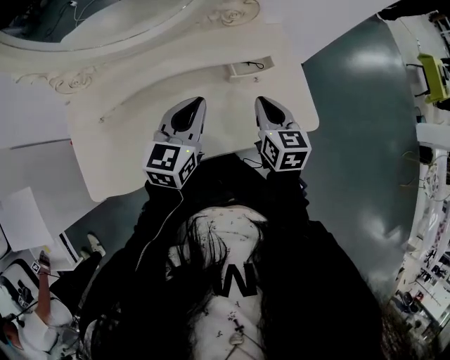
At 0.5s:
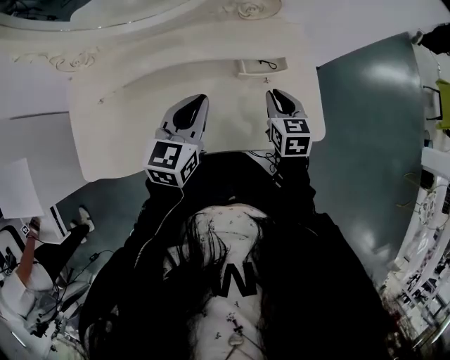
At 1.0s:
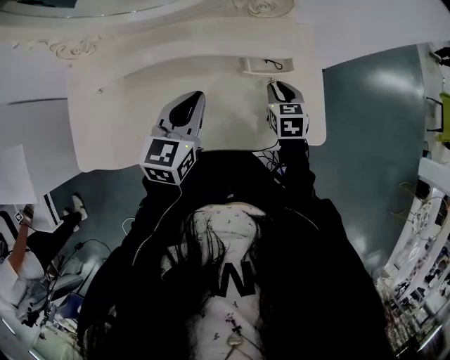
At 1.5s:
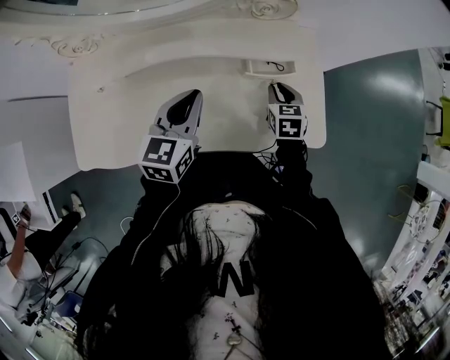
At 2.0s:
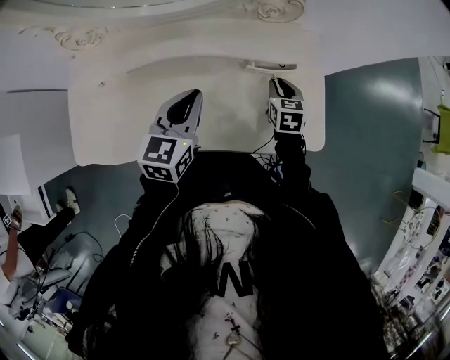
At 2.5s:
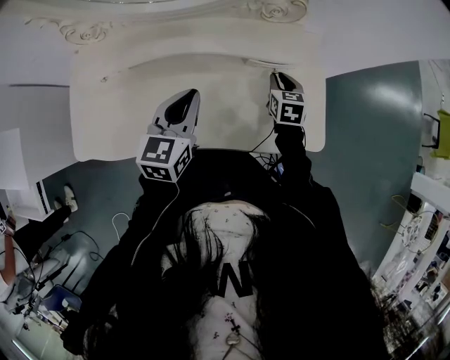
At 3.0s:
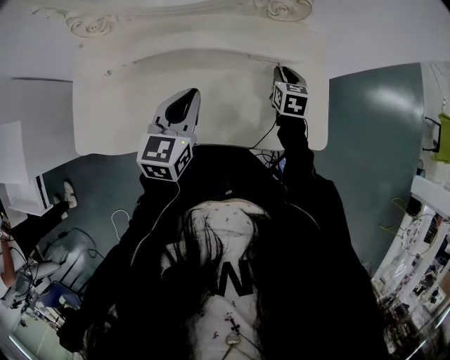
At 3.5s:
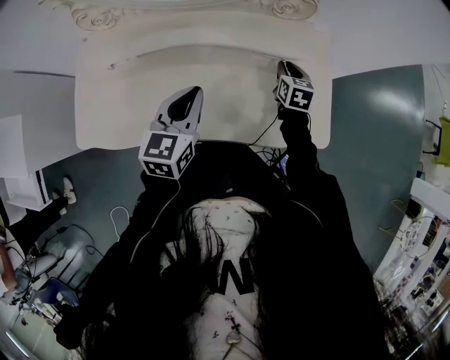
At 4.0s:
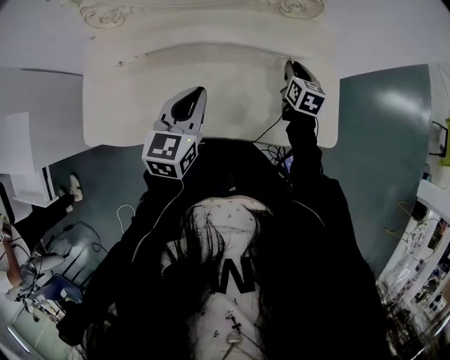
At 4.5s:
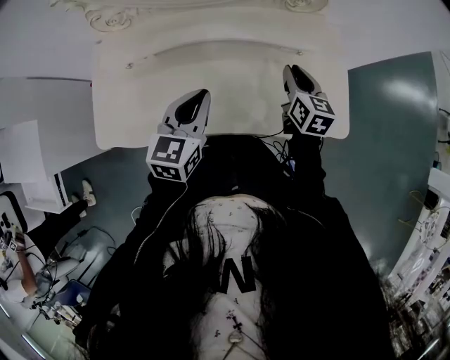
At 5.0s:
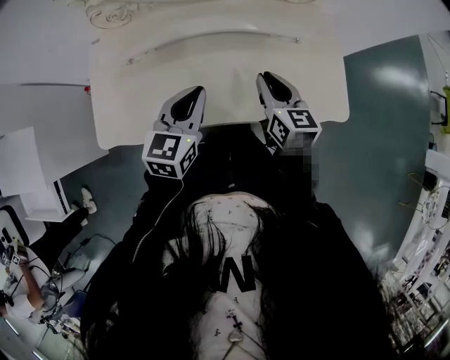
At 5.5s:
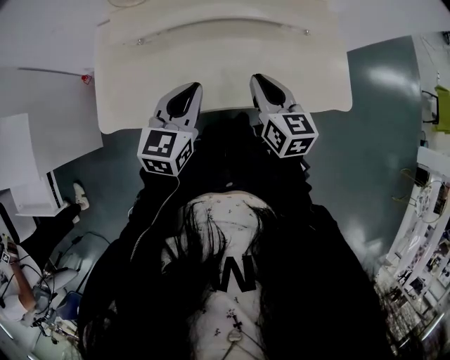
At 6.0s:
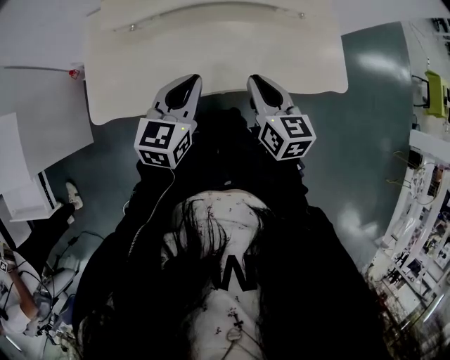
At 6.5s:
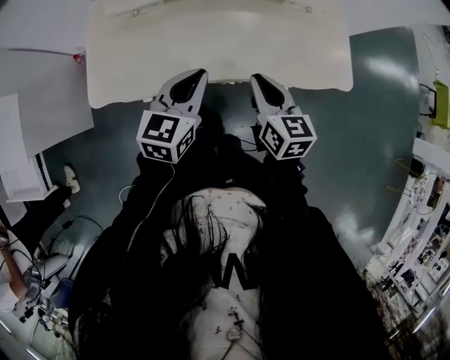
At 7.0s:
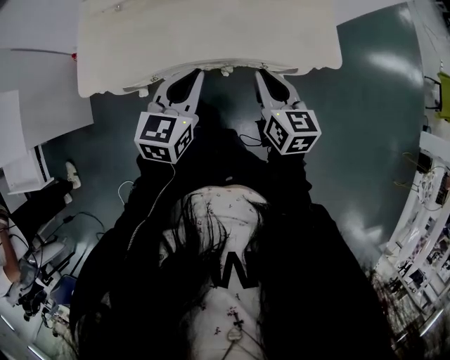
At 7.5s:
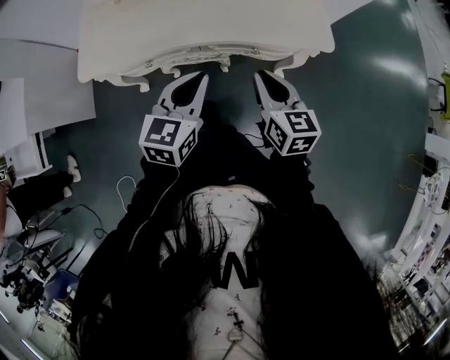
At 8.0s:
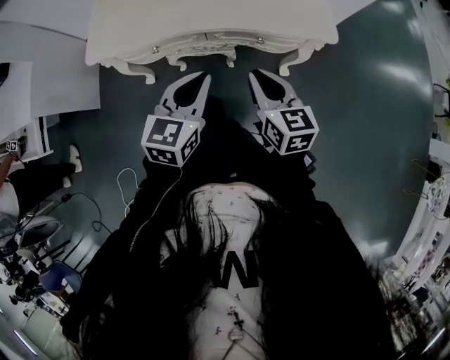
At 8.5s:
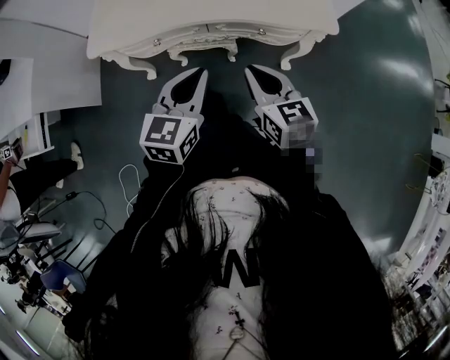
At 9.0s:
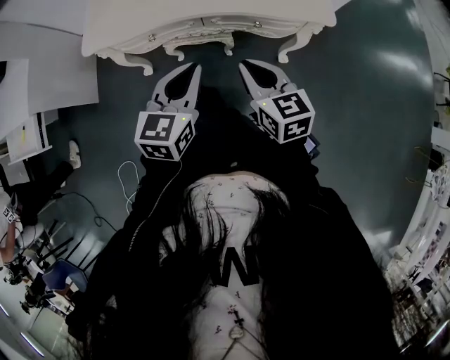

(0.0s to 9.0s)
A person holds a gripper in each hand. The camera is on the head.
0.0s - 2.0s: The left gripper moves about 5 cm. The right gripper travels downward and forward by roughly 15 cm, and swivels some 20 degrees.
2.0s - 4.5s: The right gripper shifts roughly 10 cm upward and to the left, and changes its angle by roughly 20 degrees. The left gripper travels backward and to the left by roughly 10 cm.
4.5s - 7.0s: The right gripper travels backward by approximately 25 cm. The left gripper shifts some 20 cm backward.
7.0s - 9.0s: Both grippers travel together backward, approximately 15 cm.

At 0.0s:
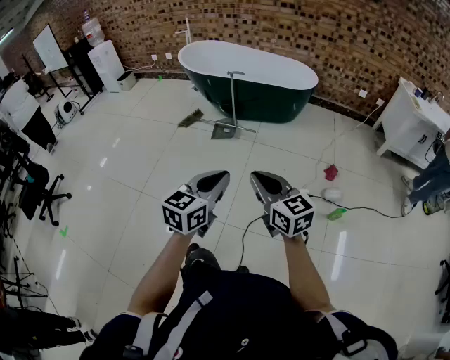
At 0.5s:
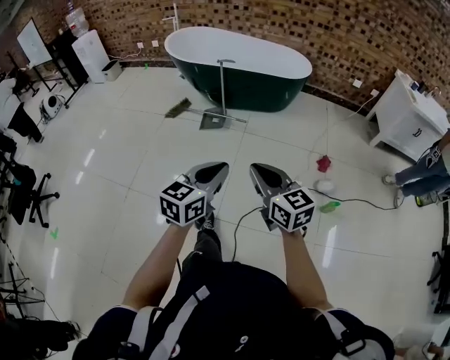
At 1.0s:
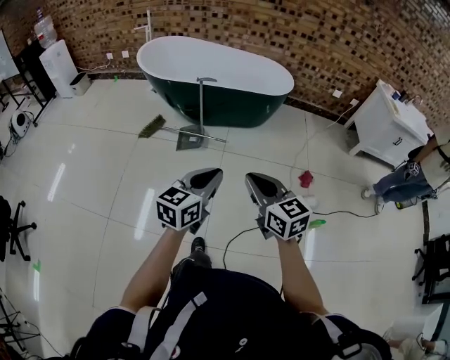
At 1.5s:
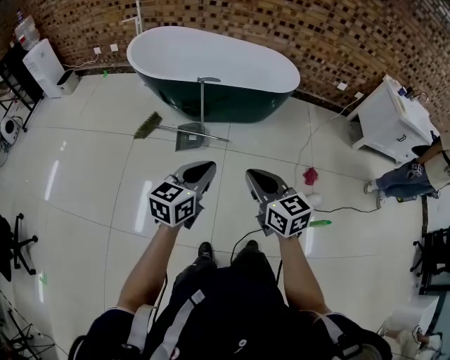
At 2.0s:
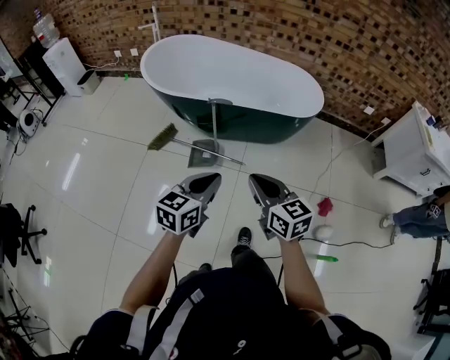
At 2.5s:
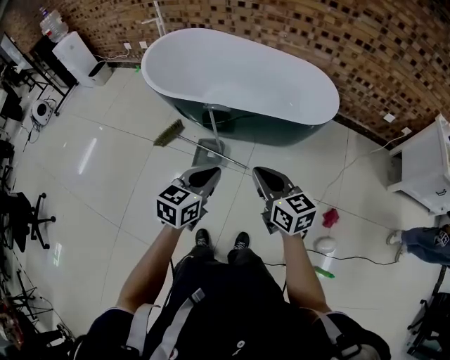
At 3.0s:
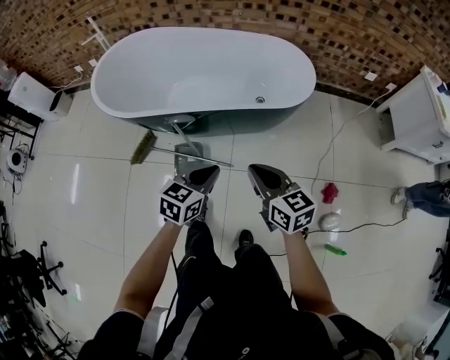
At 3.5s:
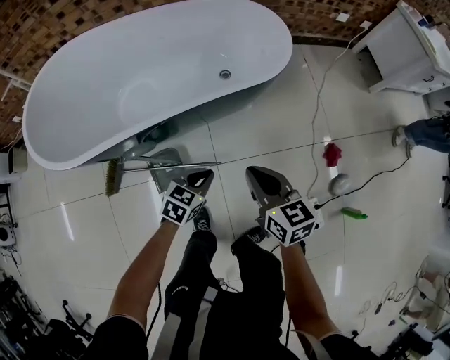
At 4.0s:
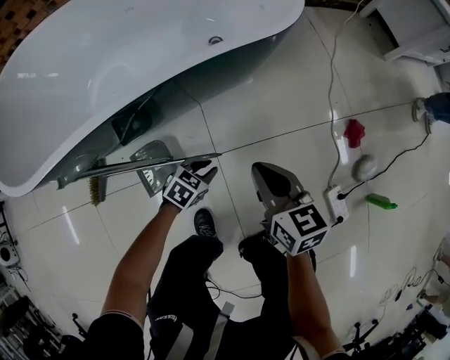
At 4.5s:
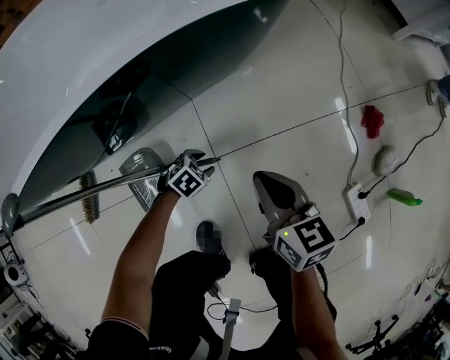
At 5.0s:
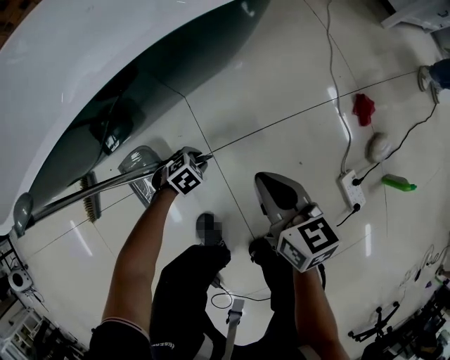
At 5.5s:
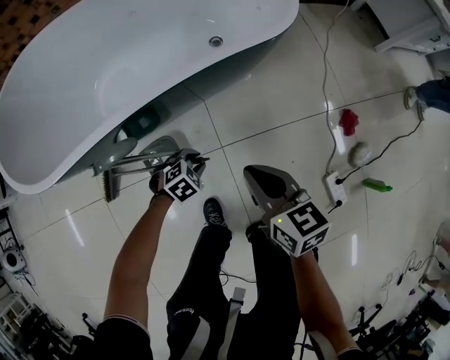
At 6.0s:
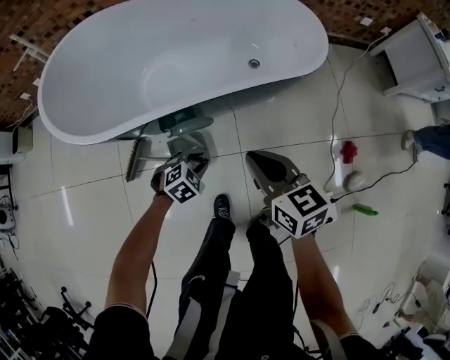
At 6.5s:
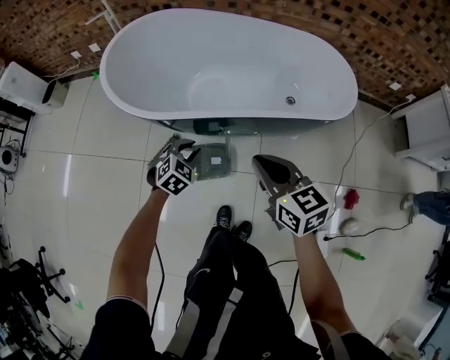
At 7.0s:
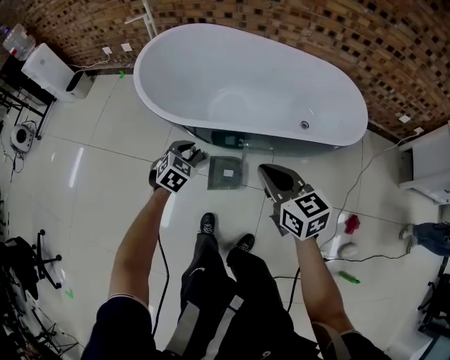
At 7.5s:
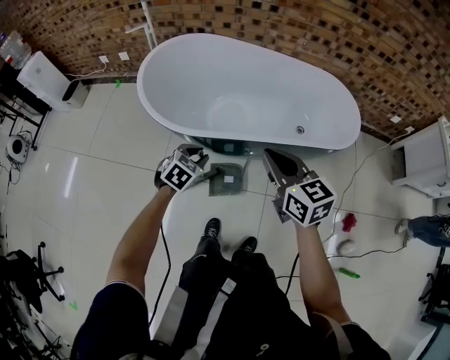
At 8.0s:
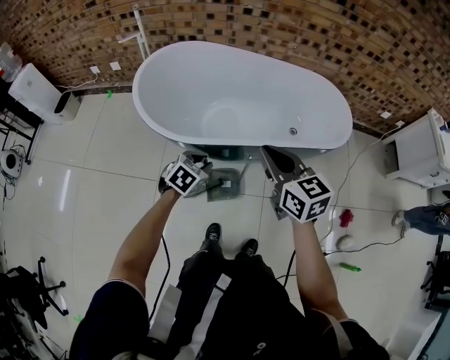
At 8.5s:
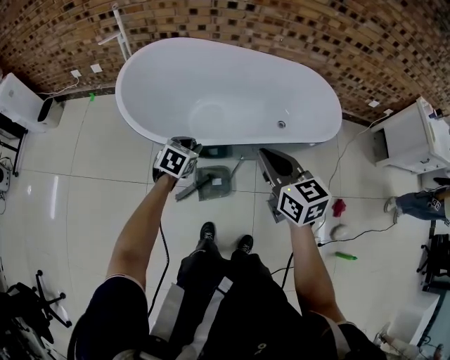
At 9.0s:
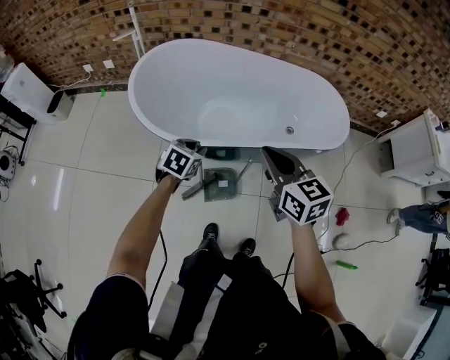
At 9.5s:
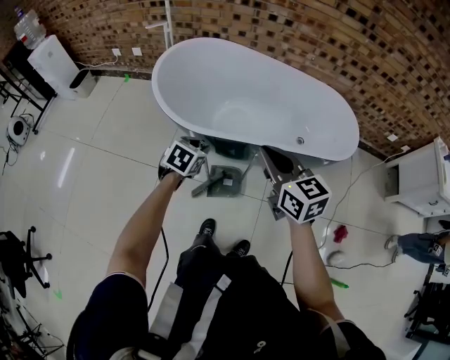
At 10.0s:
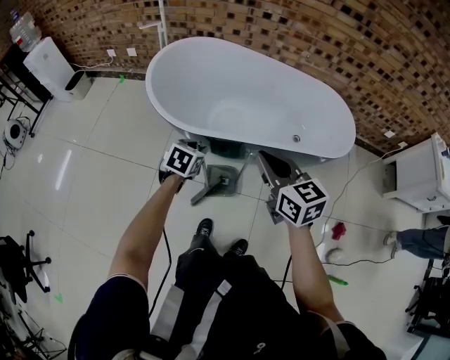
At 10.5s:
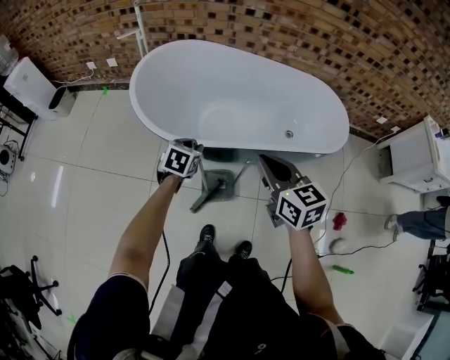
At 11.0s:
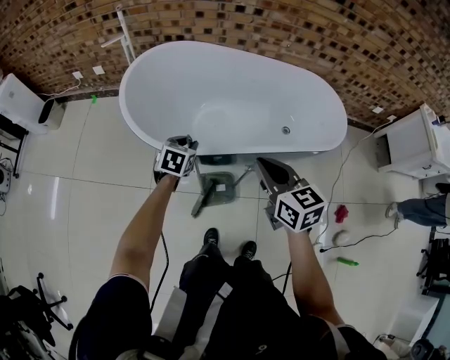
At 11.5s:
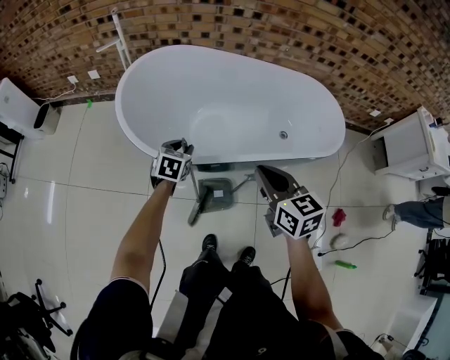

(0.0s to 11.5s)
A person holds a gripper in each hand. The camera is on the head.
0.0s - 2.0s: The pair of grippers is taken forward, about 50 cm.
2.0s - 4.0s: The right gripper heads downward, covering some 40 cm, and changes its angle by about 40 degrees. Meanwhile the left gripper is displaced downward by about 60 cm, tips its fingers downward by some 30 degrees, and opens up.
4.0s - 6.0s: Both grippers travel together upward, some 20 cm. The left gripper swivels some 20 degrees, and opens and closes again.
6.0s - 7.5s: The grippers both shift upward by about 20 cm. The left gripper changes its angle by about 30 degrees.
7.5s - 9.5s: The right gripper changes place by roughly 5 cm.
9.5s - 11.5s: The right gripper goes roughly 10 cm forward and downward. The left gripper shifts about 15 cm forward.

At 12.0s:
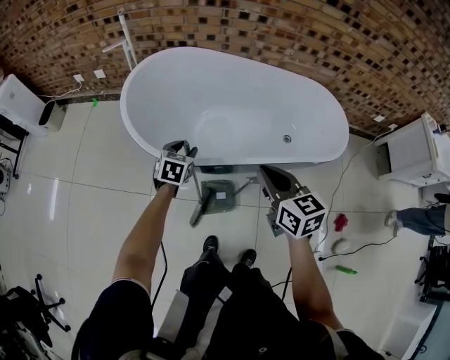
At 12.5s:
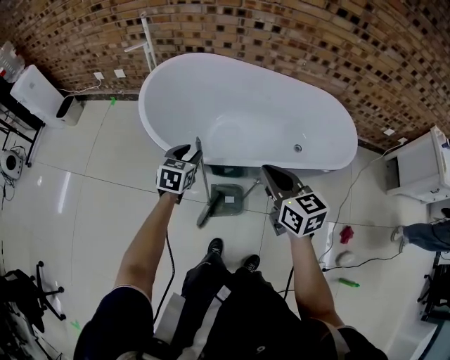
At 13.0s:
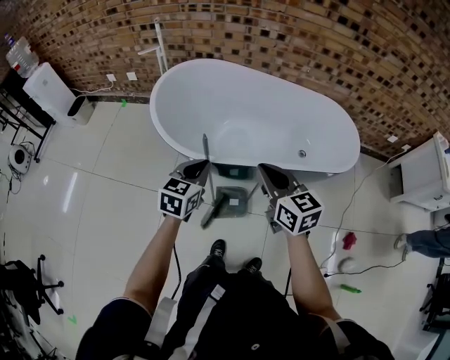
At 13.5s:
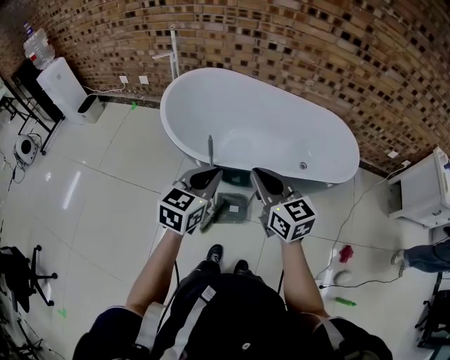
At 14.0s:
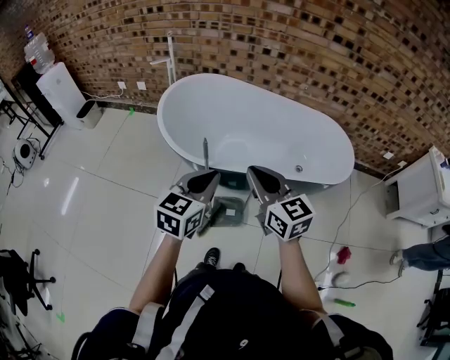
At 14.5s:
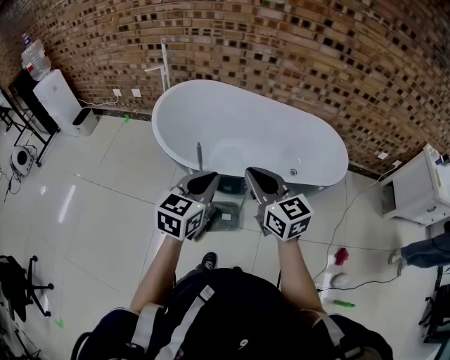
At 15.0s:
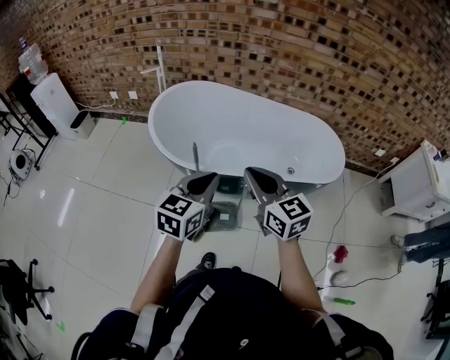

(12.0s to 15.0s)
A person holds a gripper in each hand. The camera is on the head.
12.0s - 13.5s: The right gripper travels backward, upward and to the left by some 10 cm; the left gripper moves upward and backward, some 30 cm, changes its angle by approximately 20 degrees, and closes its fingers.
13.5s - 15.0s: The left gripper shifts by roughly 5 cm. Meanwhile the right gripper moves roughly 5 cm.

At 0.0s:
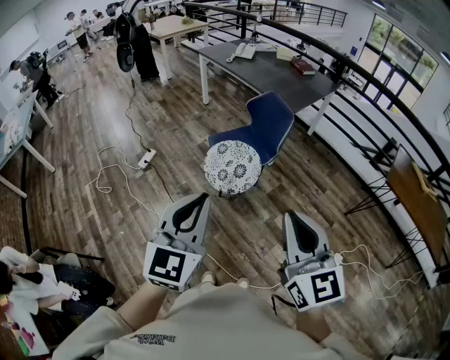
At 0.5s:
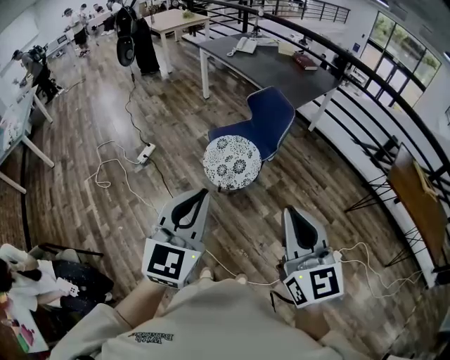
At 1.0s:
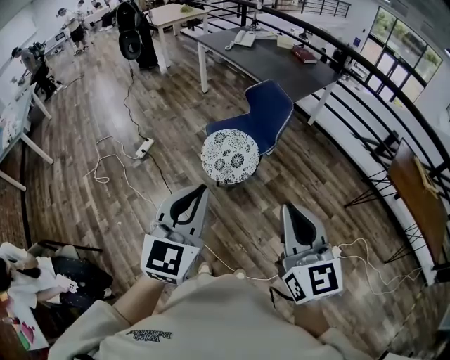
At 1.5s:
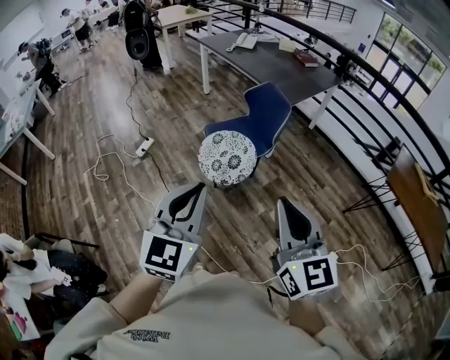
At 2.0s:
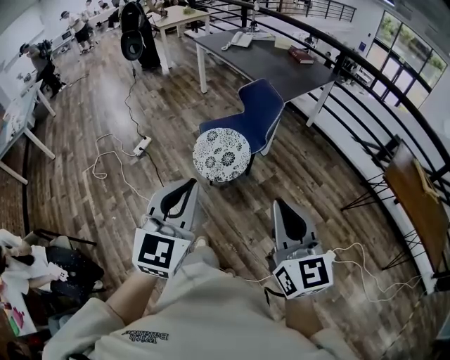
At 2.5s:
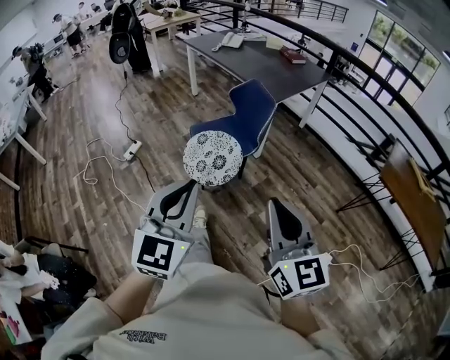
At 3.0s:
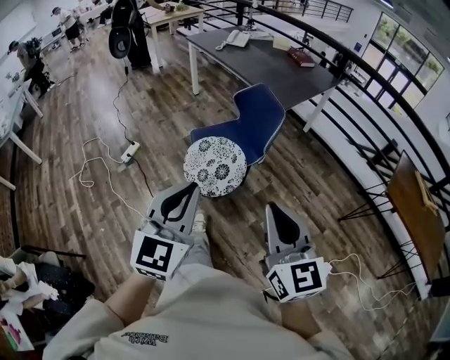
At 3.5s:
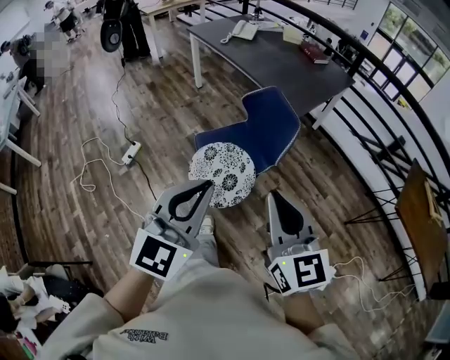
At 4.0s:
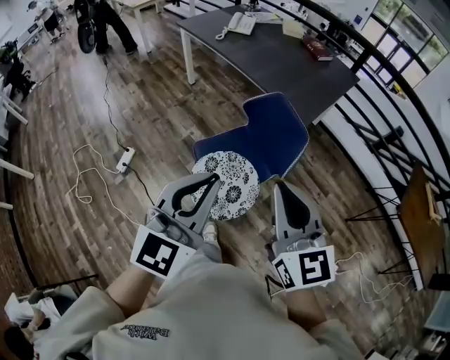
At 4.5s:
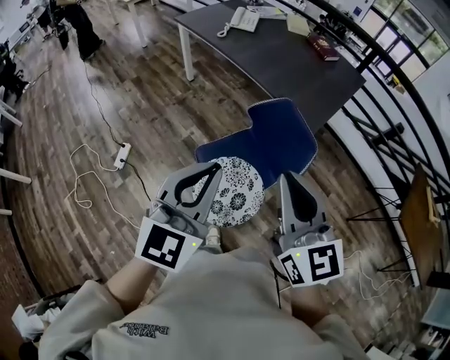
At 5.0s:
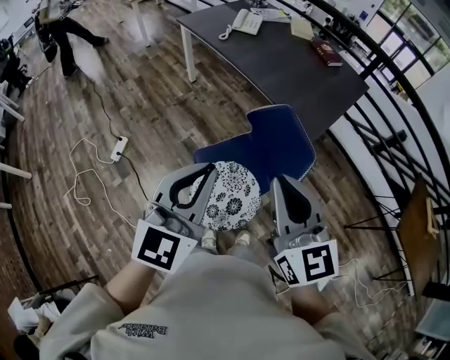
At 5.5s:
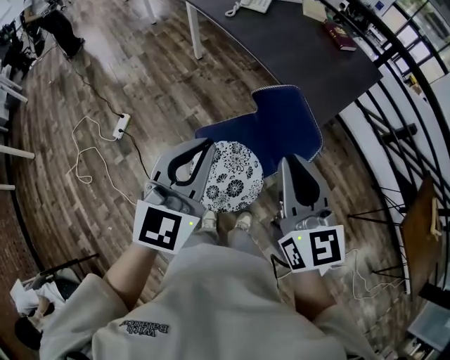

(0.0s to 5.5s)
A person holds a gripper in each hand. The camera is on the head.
0.0s - 2.0s: Both grippers travel together to the right, about 10 cm.
2.0s - 3.5s: The two grippers go some 30 cm forward.
3.5s - 5.5s: The two grippers go some 30 cm forward.
